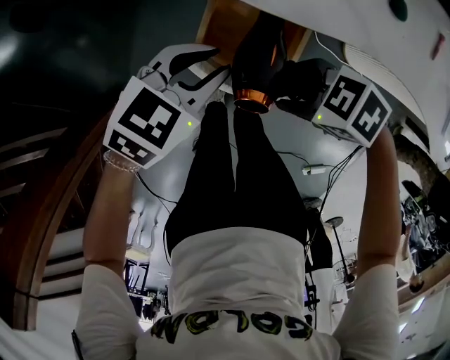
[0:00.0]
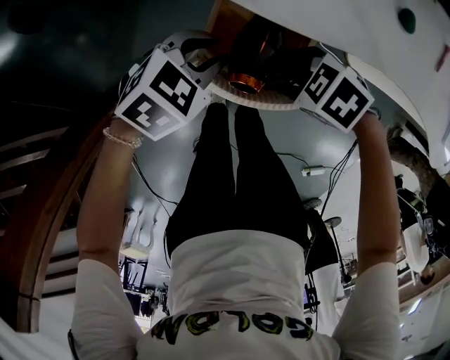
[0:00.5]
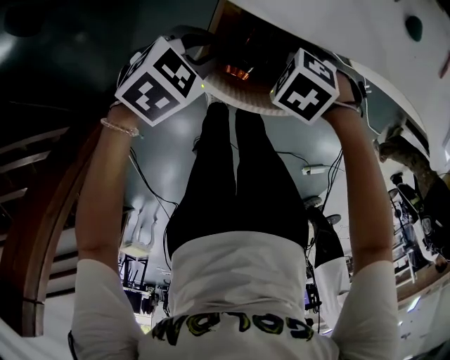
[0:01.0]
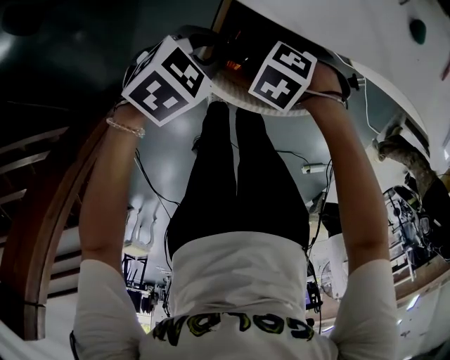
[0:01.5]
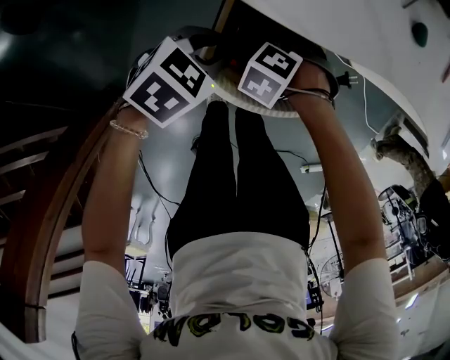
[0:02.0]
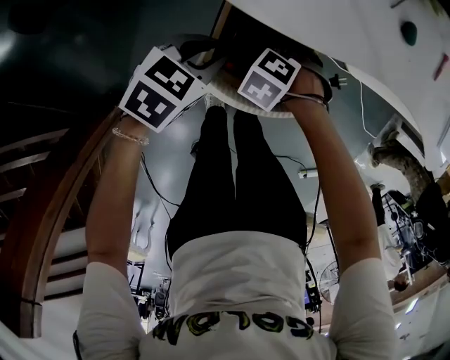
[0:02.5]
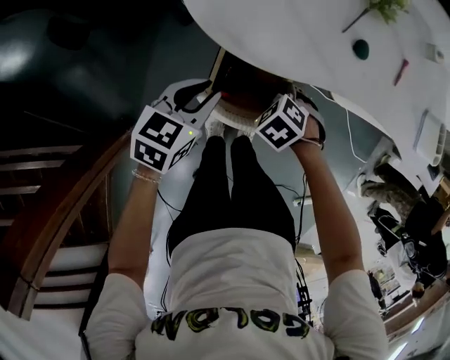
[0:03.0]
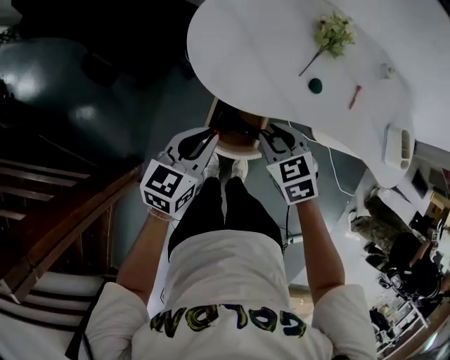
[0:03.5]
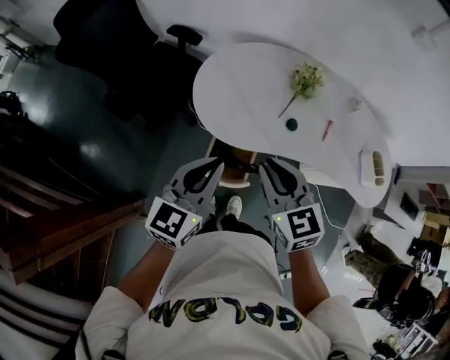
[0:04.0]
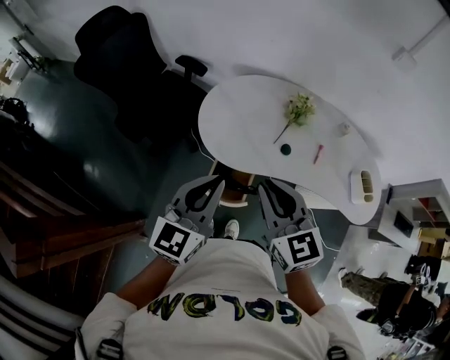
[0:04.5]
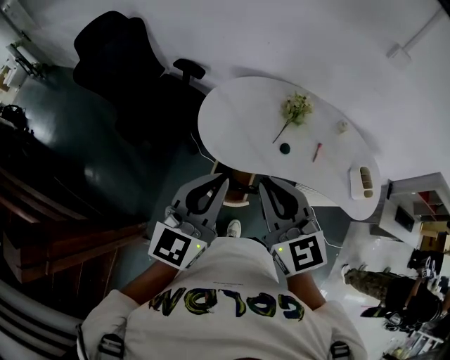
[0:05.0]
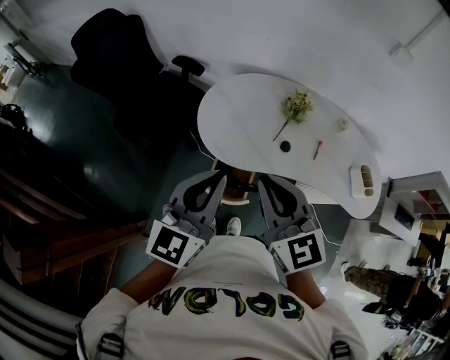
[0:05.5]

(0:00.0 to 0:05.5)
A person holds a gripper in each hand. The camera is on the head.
0:00.0 - 0:02.0: The left gripper moves downward, approximately 10 cm. The right gripper heads downward, covering about 15 cm, and points its fingers some 30 degrees further downward.
0:02.0 - 0:03.5: Both grippers move upward, some 30 cm. The right gripper points its fingers some 30 degrees further upward, and closes up; the left gripper changes its angle by roughly 40 degrees.
0:03.5 - 0:05.5: Both grippers travel together upward, approximately 35 cm. The right gripper tips its fingers upward by approximately 40 degrees. The left gripper changes its angle by some 30 degrees.

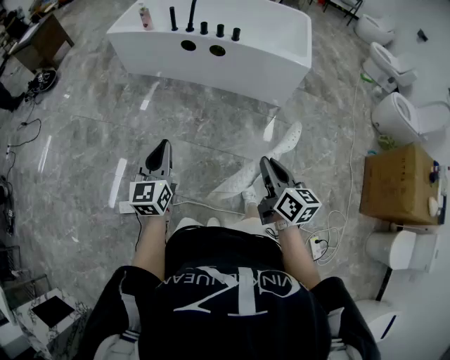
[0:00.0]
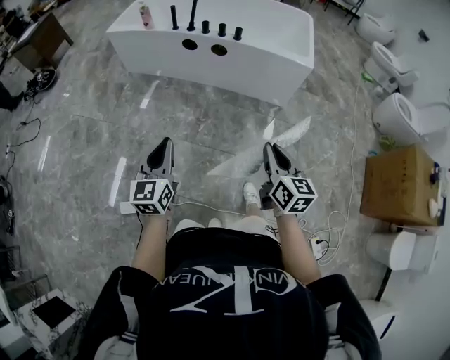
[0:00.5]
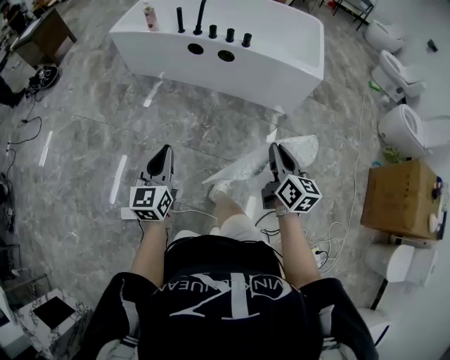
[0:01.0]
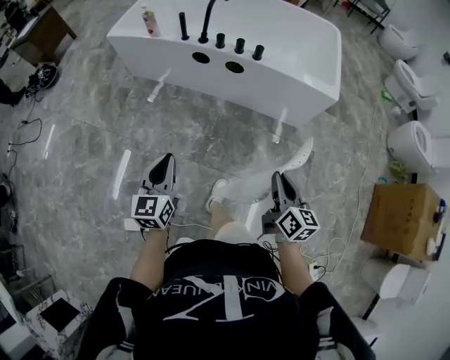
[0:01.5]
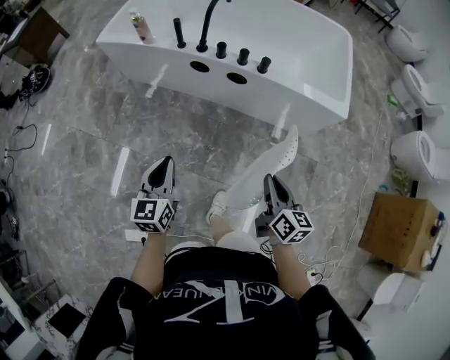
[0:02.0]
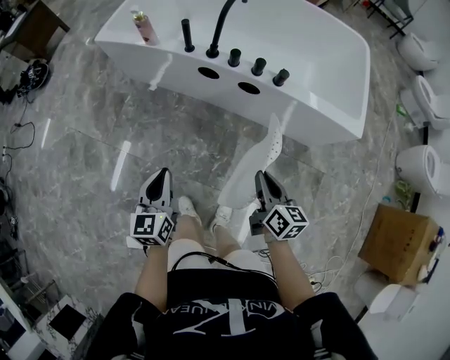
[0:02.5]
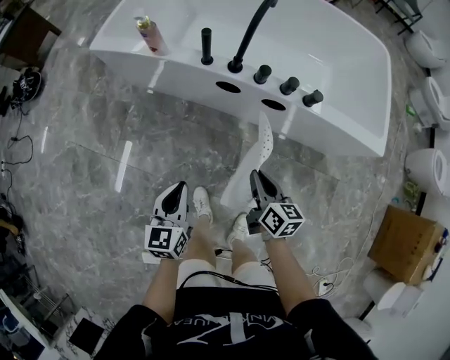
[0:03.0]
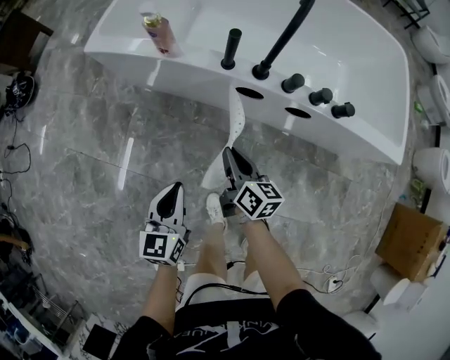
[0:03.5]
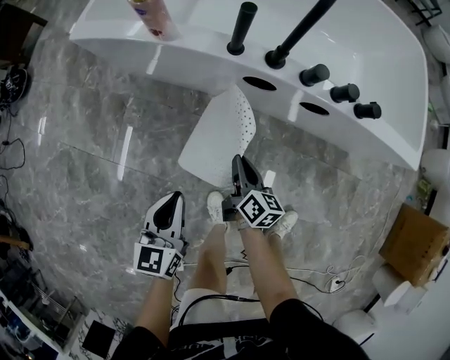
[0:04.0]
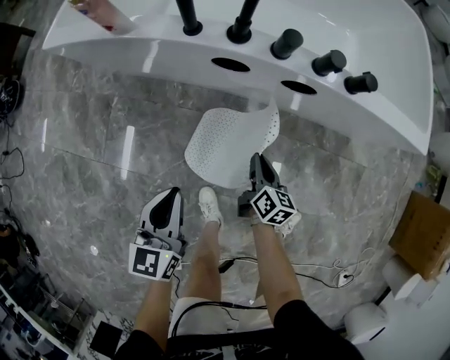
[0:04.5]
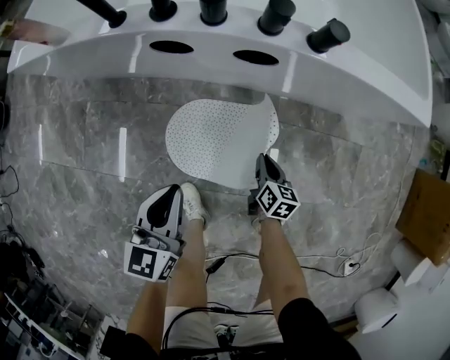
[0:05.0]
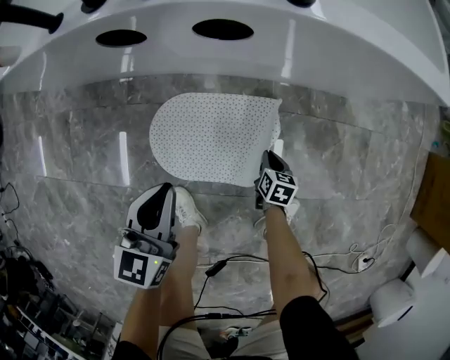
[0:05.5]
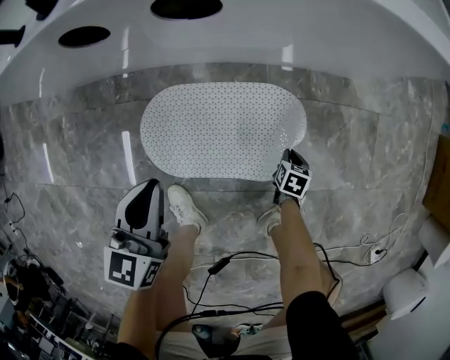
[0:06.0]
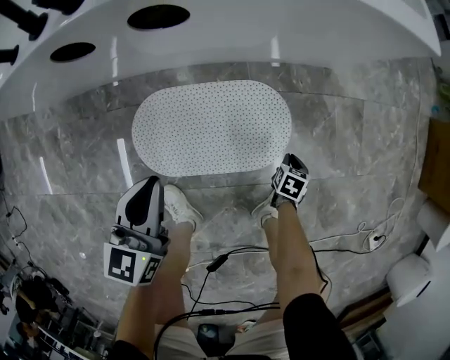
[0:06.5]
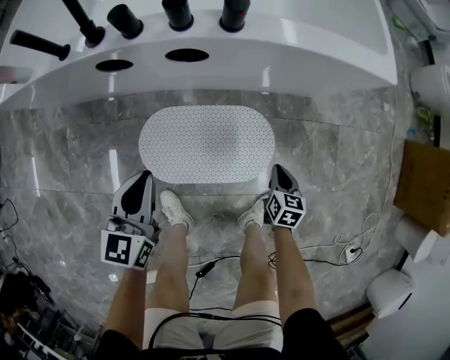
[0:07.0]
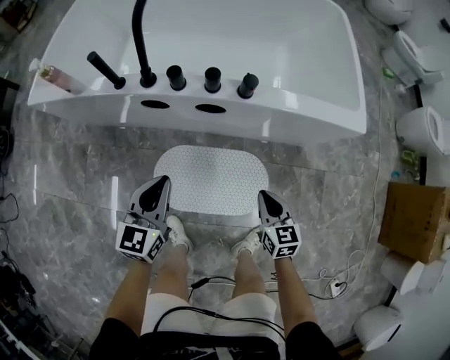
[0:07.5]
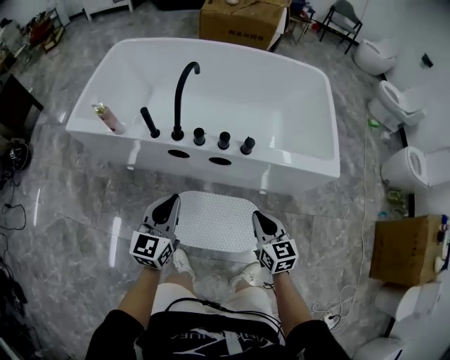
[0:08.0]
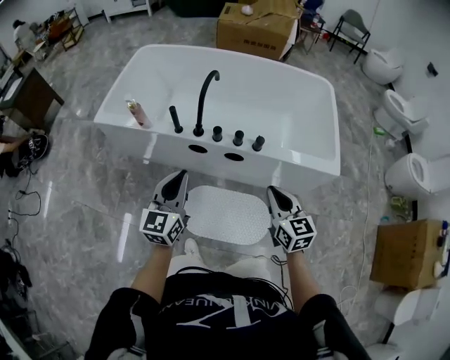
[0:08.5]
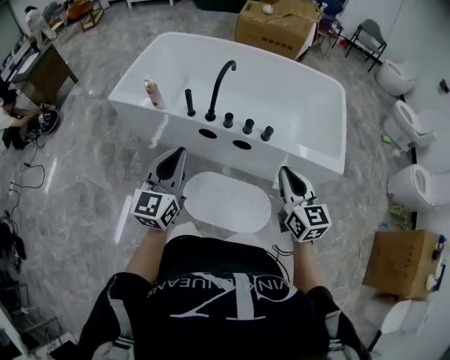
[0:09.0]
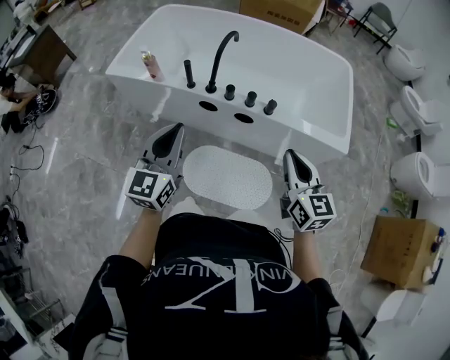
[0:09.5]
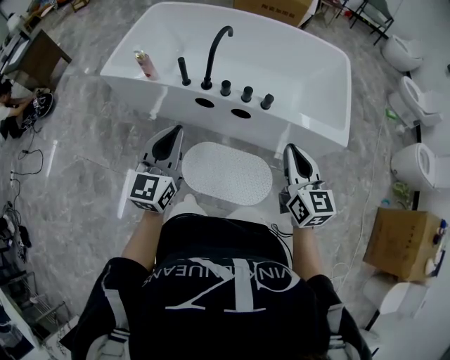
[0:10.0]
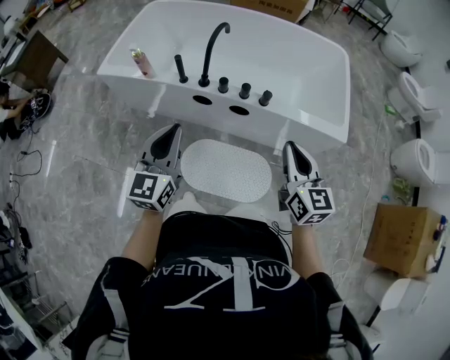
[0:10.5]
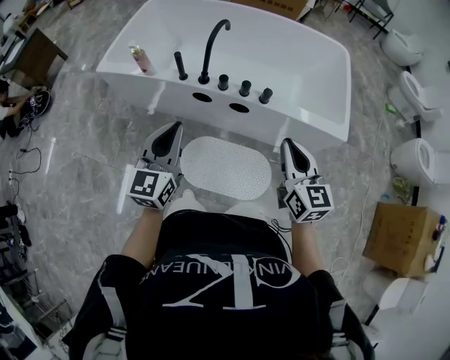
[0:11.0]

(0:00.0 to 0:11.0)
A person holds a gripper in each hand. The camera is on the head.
0:00.0 - 0:02.0: Both grippers travel together forward, approximately 35 cm.
0:02.0 - 0:03.5: The right gripper moves forward, to the left and downward, about 50 cm. Meanwhile the left gripper moves forward, to the left and downward, some 35 cm.
0:03.5 - 0:05.5: The left gripper travels to the right and downward by approximately 35 cm, and changes its angle by approximately 20 degrees. The right gripper travels downward and to the right by some 60 cm, and points its fingers roughly 40 degrees further downward.
0:05.5 - 0:07.5: The right gripper shifts about 40 cm upward, and swivels about 40 degrees. Meanwhile the left gripper goes roughly 20 cm upward.
0:07.5 - 0:09.0: Both grippers move upward, approximately 40 cm. The right gripper changes its angle by about 30 degrees; the left gripper rotates about 20 degrees.
0:09.0 - 0:11.0: The grippers stay close to where they were, moving slightly.

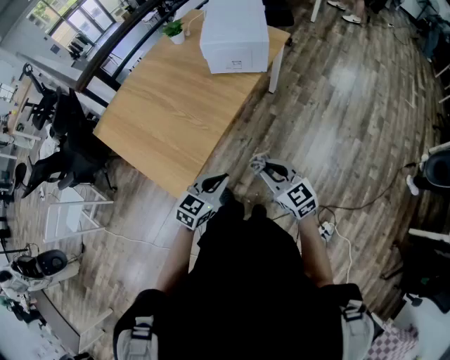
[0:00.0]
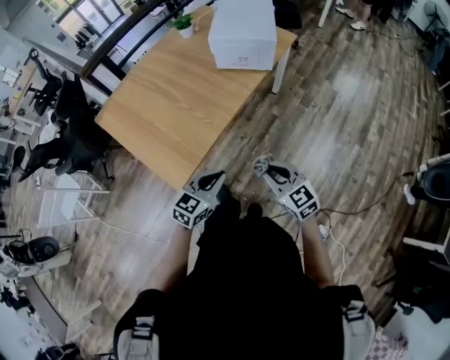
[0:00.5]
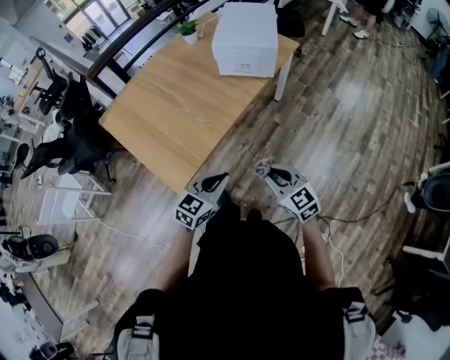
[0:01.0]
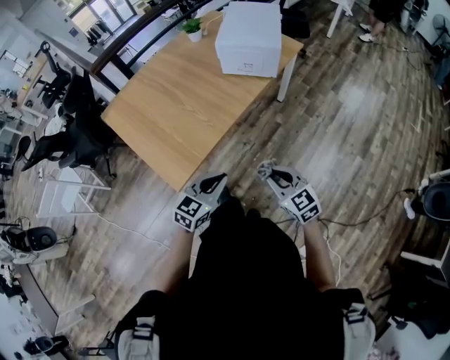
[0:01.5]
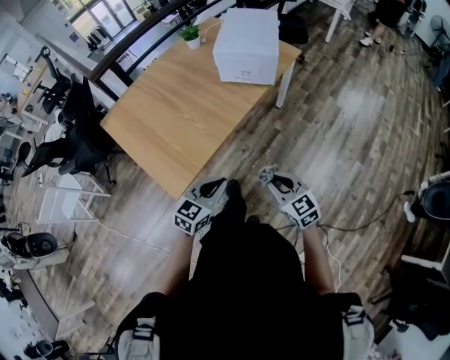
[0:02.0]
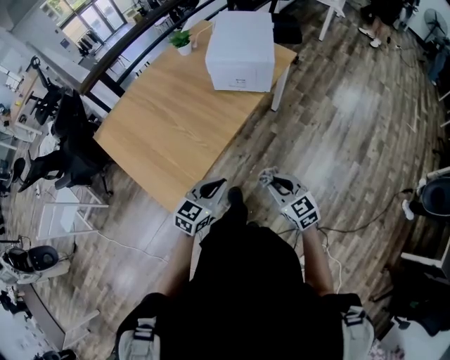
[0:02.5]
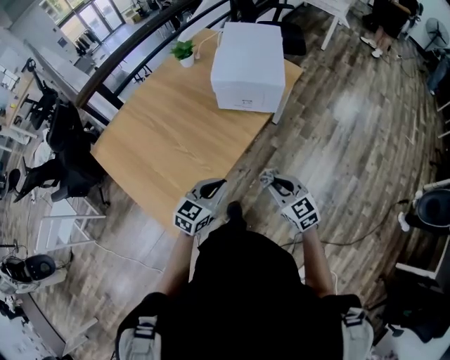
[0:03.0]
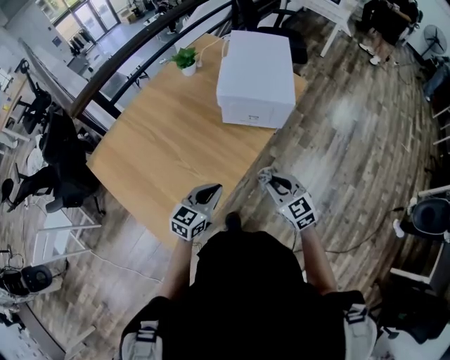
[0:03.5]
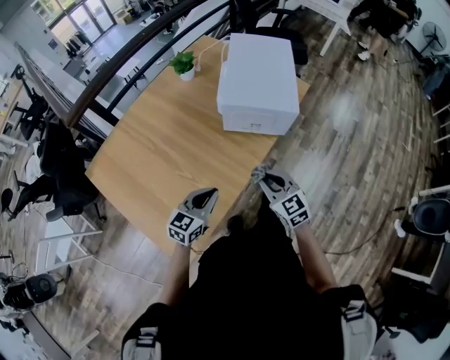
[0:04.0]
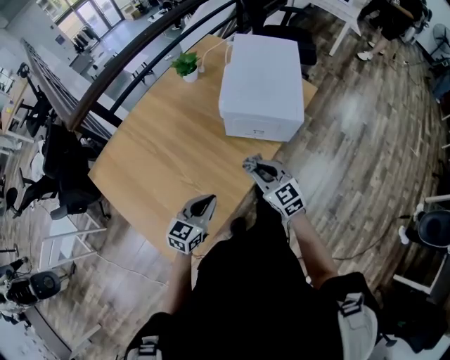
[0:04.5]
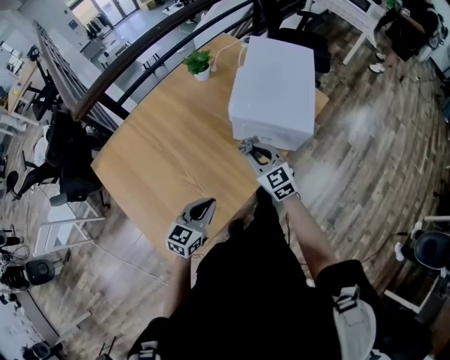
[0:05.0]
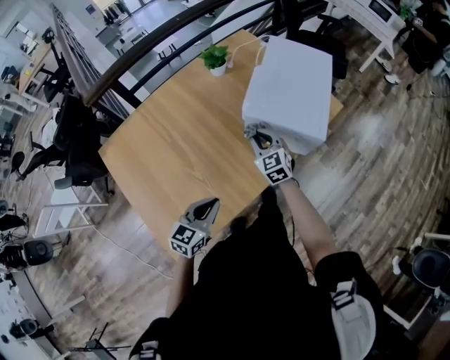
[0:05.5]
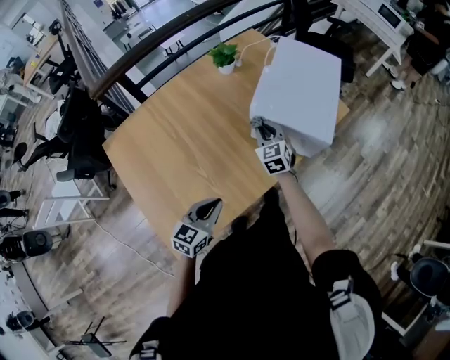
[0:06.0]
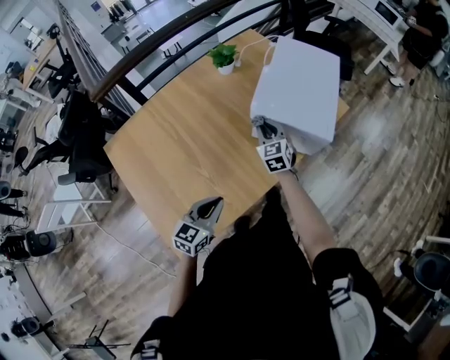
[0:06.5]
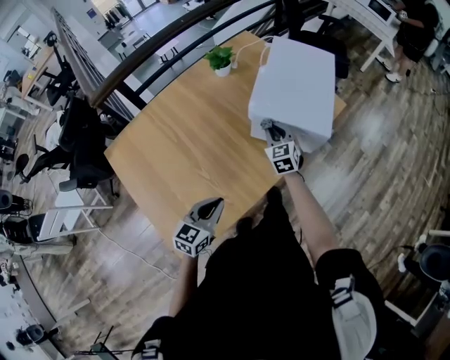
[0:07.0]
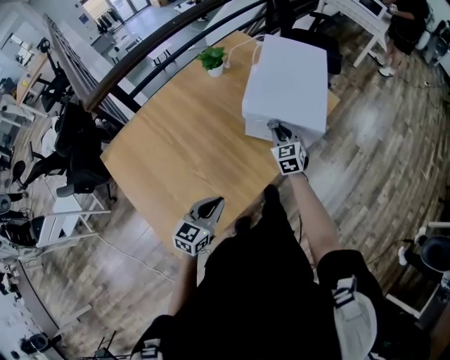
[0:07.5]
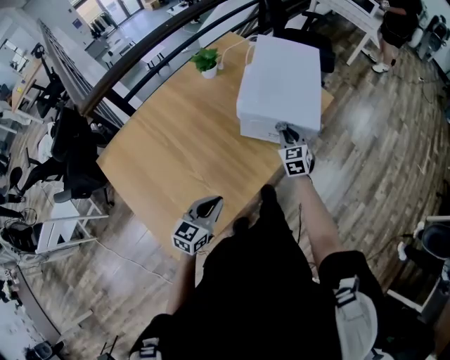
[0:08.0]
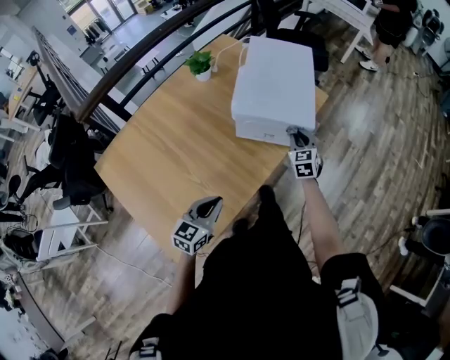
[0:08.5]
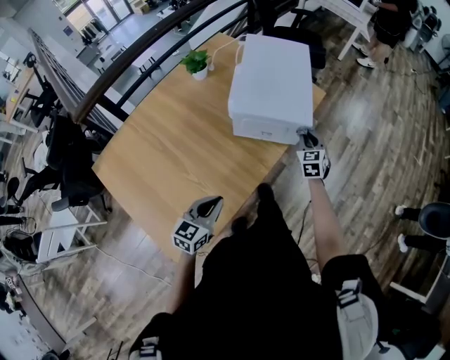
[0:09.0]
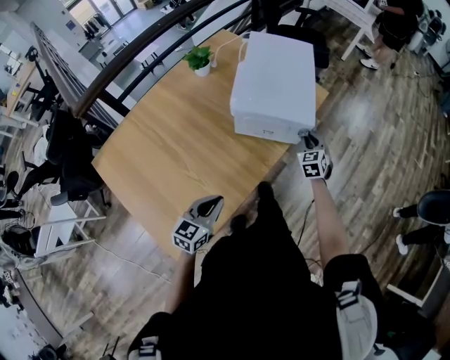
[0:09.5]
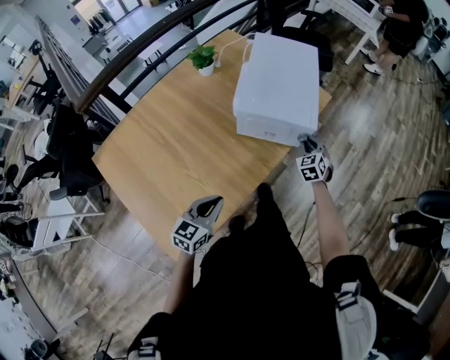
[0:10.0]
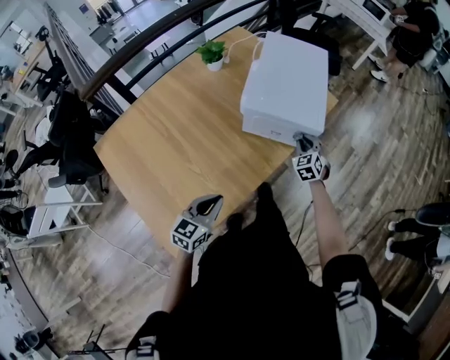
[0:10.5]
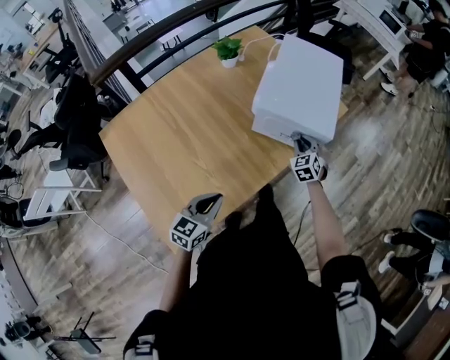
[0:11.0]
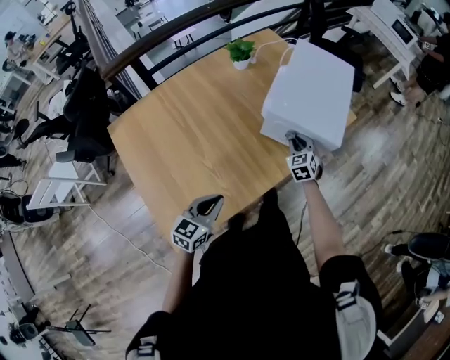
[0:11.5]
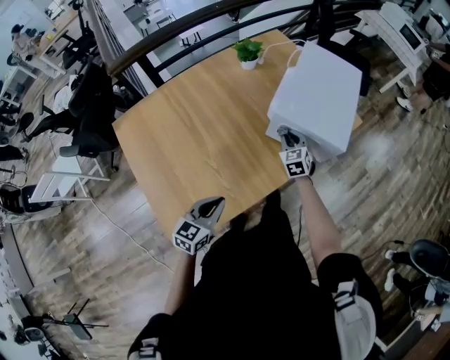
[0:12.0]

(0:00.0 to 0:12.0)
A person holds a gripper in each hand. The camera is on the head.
0:00.0 - 0:02.0: The grippers stay close to where they were, moving slightly.
0:02.0 - 0:04.0: Both grippers move forward, about 30 cm.
0:04.0 - 0:06.0: The right gripper is displaced forward by roughly 25 cm.
0:06.0 - 0:08.0: The right gripper shifts about 15 cm to the right.
0:08.0 - 0:10.0: The right gripper goes roughly 15 cm to the right and downward.
0:10.0 - 0:12.0: The left gripper moves roughly 5 cm. The right gripper is displaced to the left by roughly 20 cm, and swivels roughly 20 degrees.
